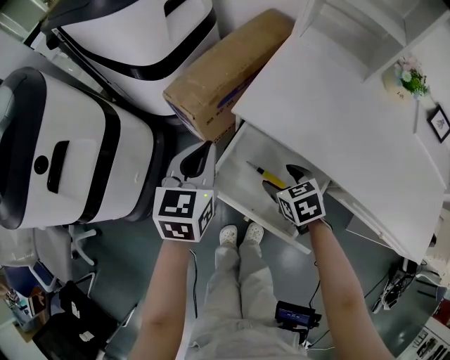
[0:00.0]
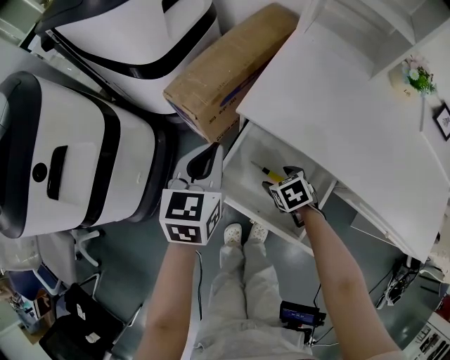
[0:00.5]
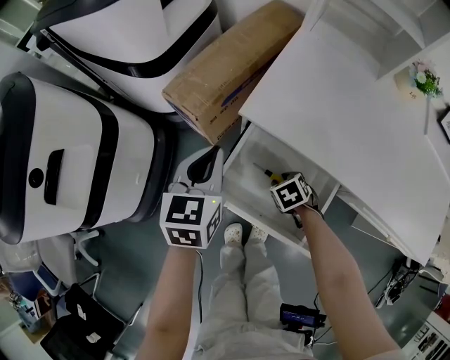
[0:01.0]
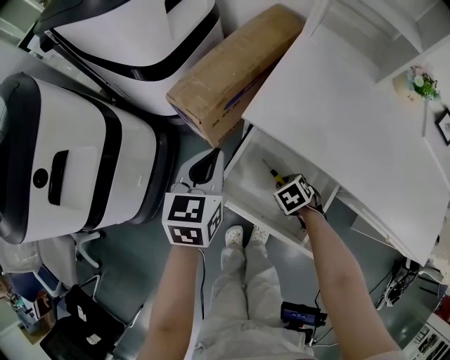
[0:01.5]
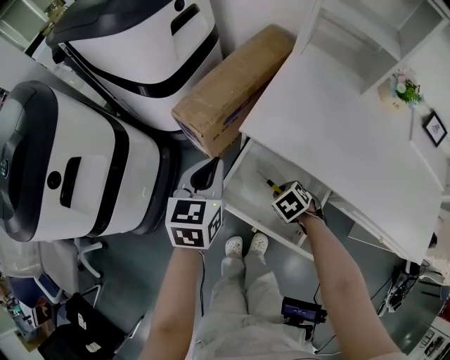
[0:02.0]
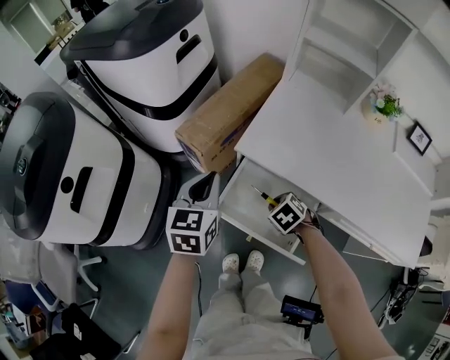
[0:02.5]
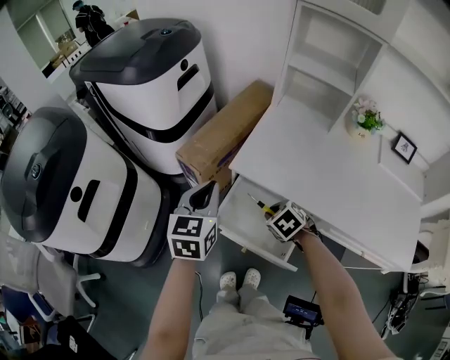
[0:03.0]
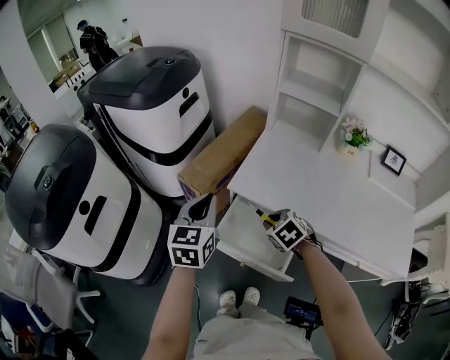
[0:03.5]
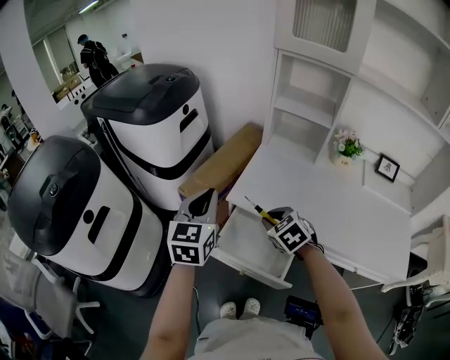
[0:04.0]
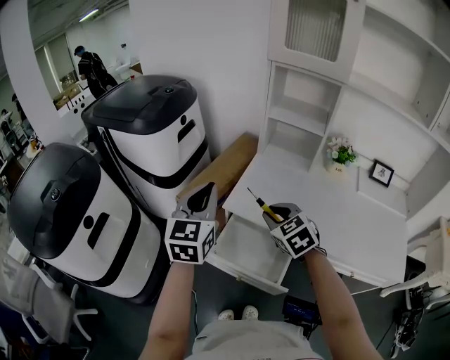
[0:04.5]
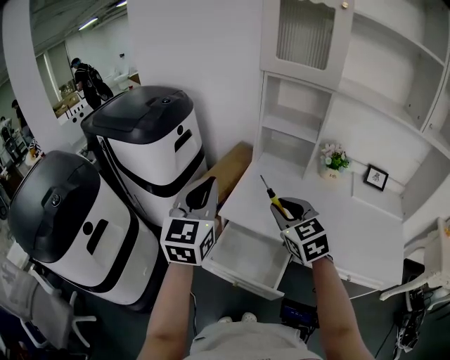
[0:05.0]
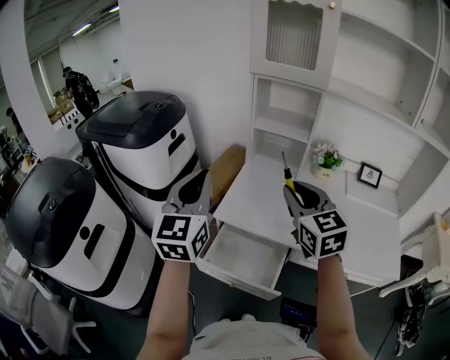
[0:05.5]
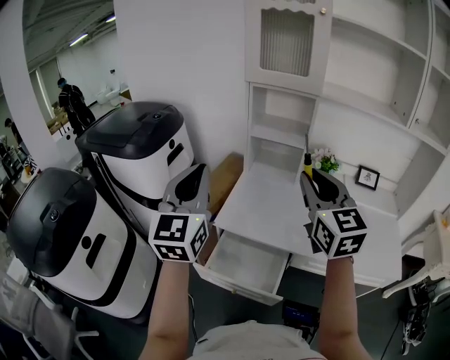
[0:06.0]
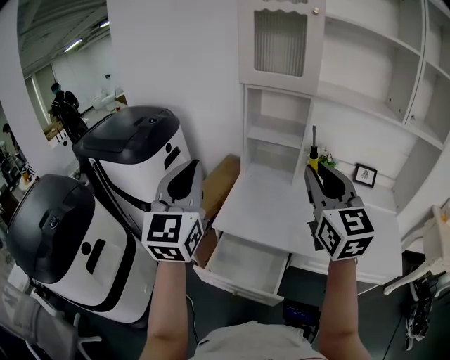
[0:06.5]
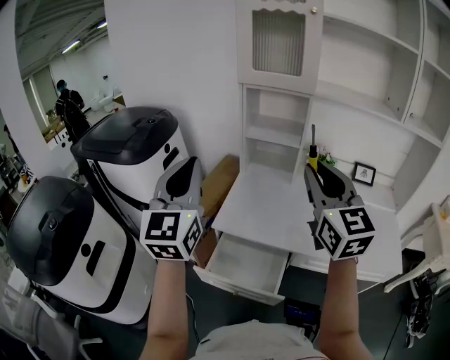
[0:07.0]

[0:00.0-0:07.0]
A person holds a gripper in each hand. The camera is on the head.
0:00.0 to 0:02.0: The right gripper goes some 5 cm downward, swivels about 20 degrees, and closes.
0:02.0 to 0:03.5: Both grippers travel together upward, about 15 cm.
0:03.5 to 0:05.0: Both grippers travel together upward, some 20 cm. The right gripper tilts its fingers roughly 40 degrees upward. Meanwhile the left gripper turns by roughly 20 degrees.
0:05.0 to 0:07.0: The left gripper moves upward, some 10 cm. The right gripper moves upward and to the right, approximately 20 cm, and changes its angle by about 30 degrees.

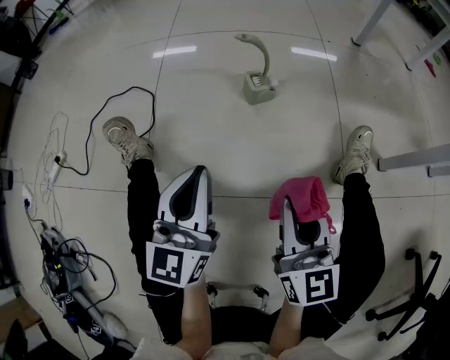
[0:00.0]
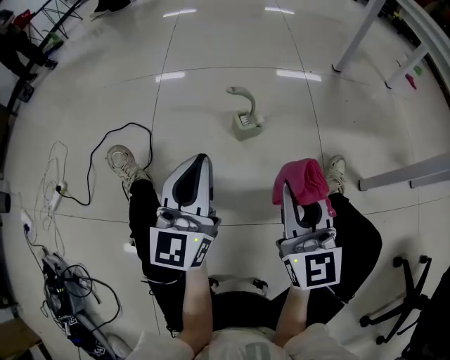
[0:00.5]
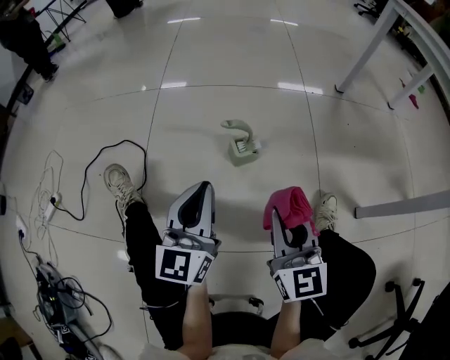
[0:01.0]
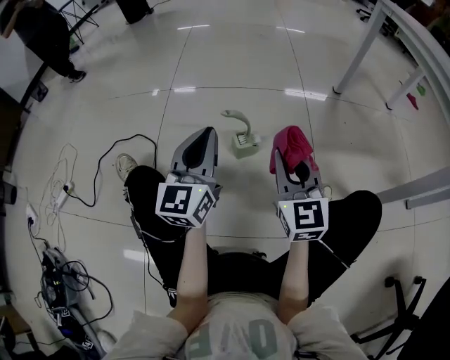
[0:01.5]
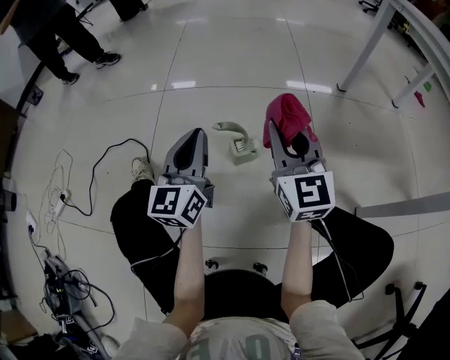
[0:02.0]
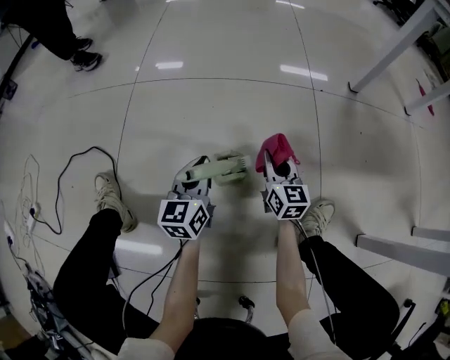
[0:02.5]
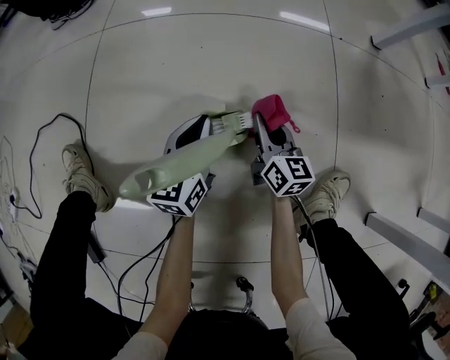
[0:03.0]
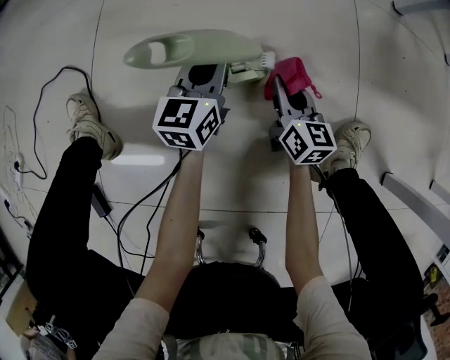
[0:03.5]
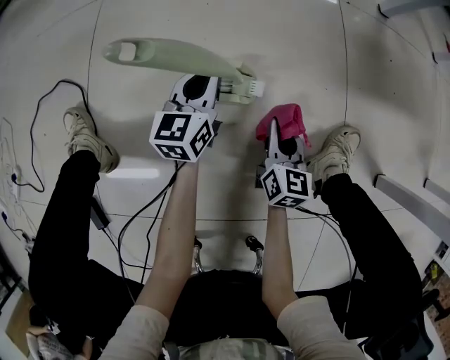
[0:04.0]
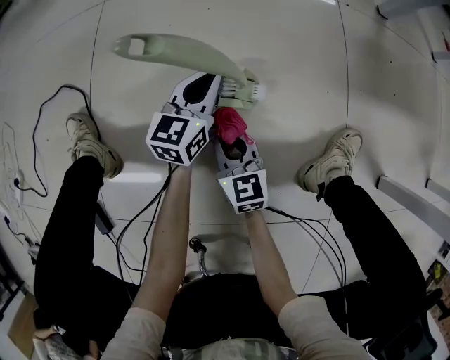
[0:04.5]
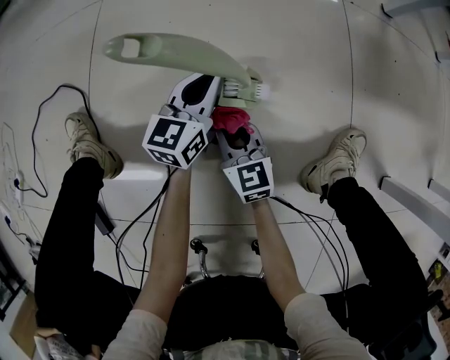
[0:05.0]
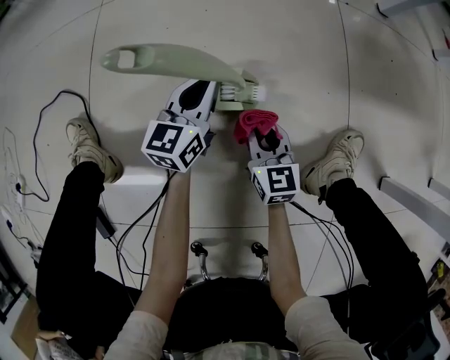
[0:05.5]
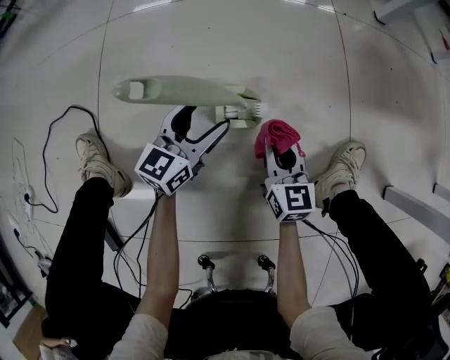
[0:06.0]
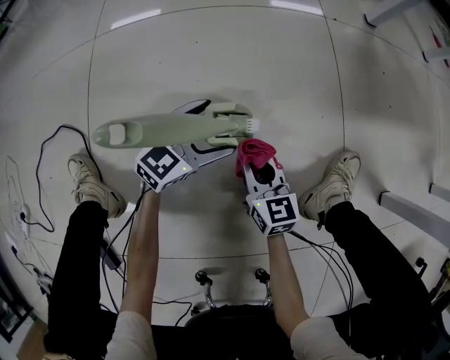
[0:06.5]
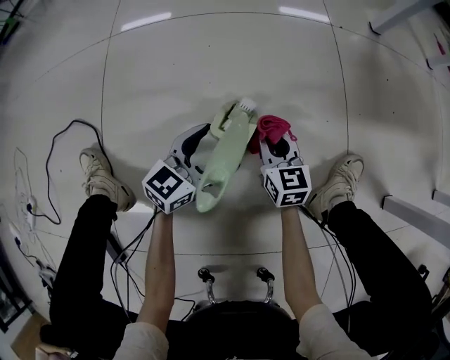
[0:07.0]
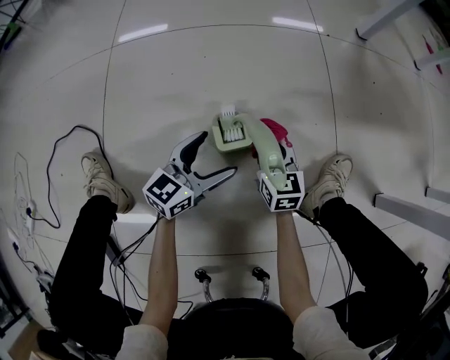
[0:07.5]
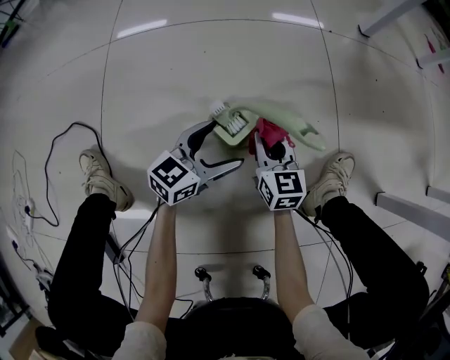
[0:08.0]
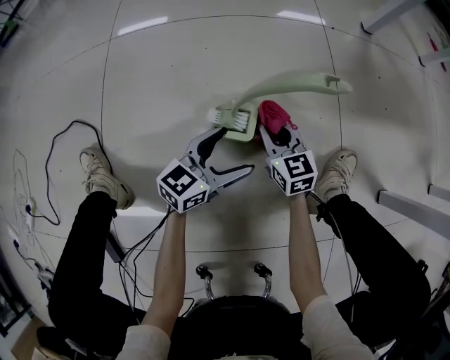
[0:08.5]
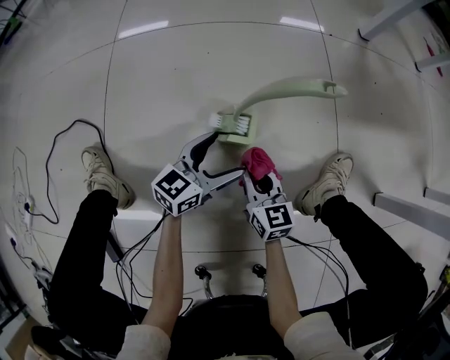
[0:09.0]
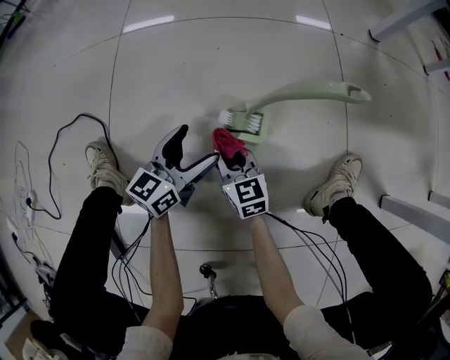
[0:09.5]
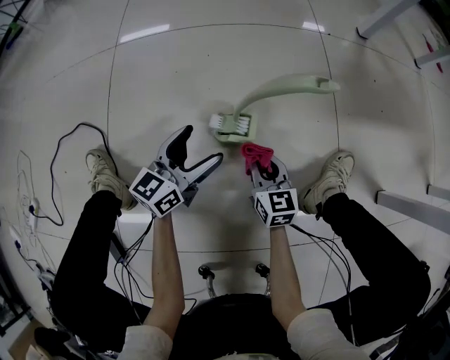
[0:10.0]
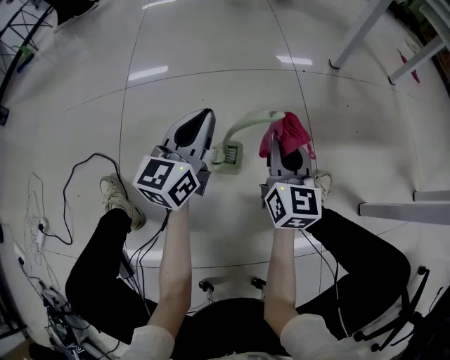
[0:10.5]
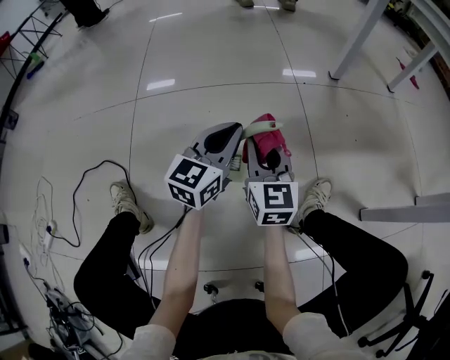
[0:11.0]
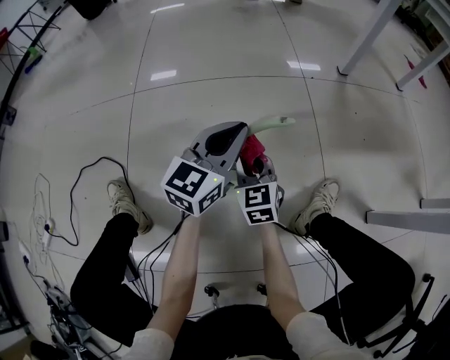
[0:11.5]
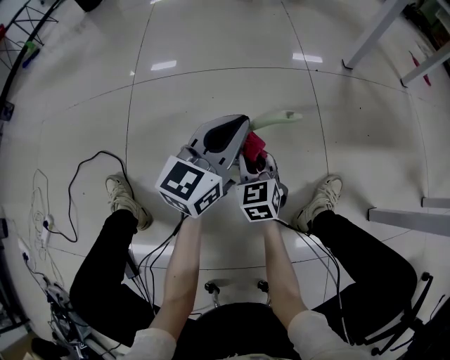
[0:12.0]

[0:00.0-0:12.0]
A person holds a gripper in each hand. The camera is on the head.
0:00.0 to 0:02.0: The two grippers go approximately 25 cm forward.
0:02.0 to 0:04.0: The grippers both shift downward by roughly 35 cm. The left gripper swivels approximately 20 degrees; the right gripper turns by approximately 40 degrees.
0:04.0 to 0:06.0: The left gripper opens its fingers, while the right gripper travels to the left and back again, roughly 15 cm each way.
0:06.0 to 0:08.0: The right gripper ends up approximately 5 cm from where it was; the left gripper travels to the right by roughly 5 cm.
0:08.0 to 0:10.0: The right gripper travels backward by roughly 5 cm, and moves some 10 cm to the left and comes back, while the left gripper is displaced to the left by about 5 cm.
0:10.0 to 0:12.0: The left gripper is displaced upward and forward by roughly 20 cm, and closes. Meanwhile the right gripper shifts roughly 15 cm upward and forward, and swivels approximately 20 degrees.

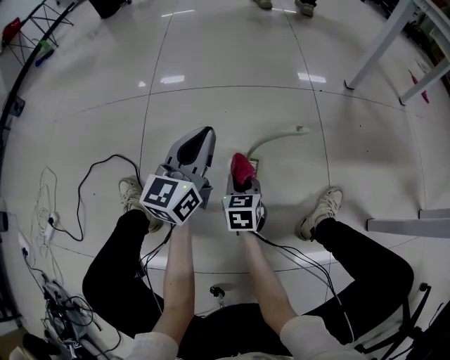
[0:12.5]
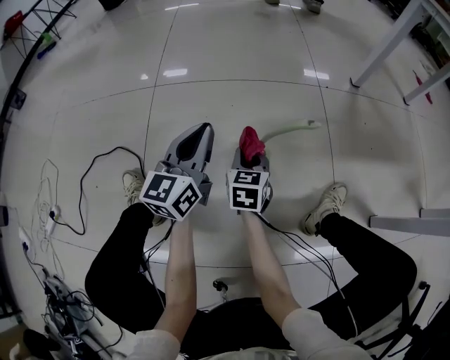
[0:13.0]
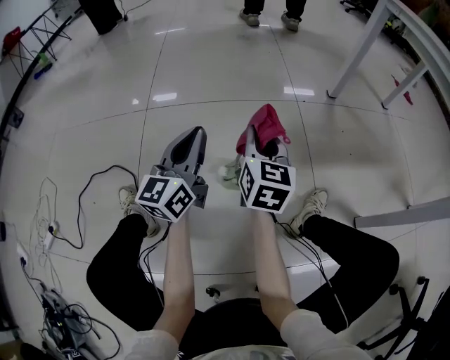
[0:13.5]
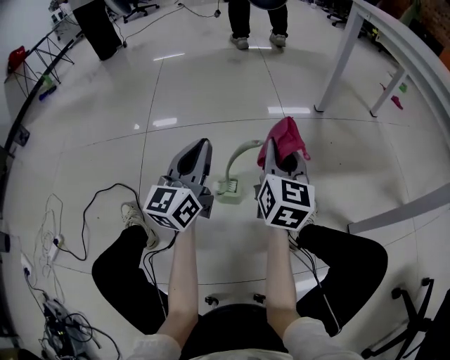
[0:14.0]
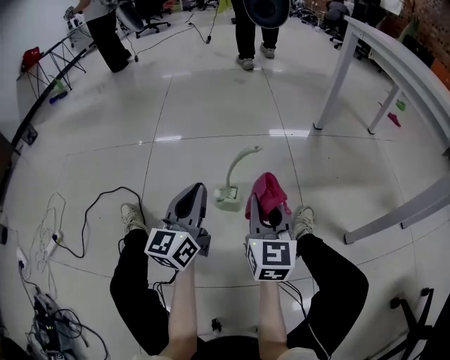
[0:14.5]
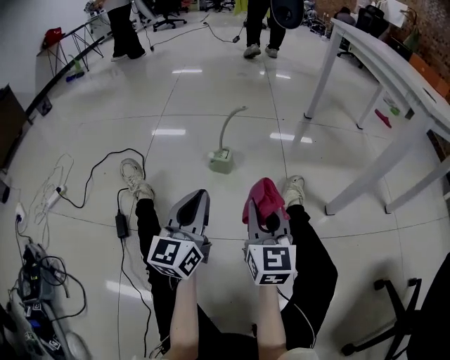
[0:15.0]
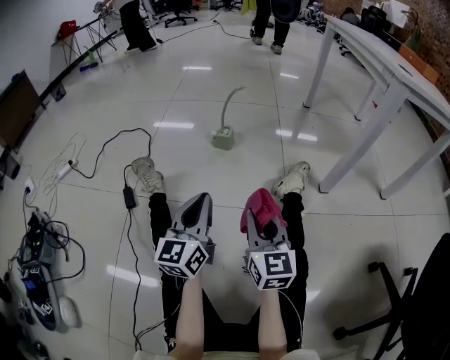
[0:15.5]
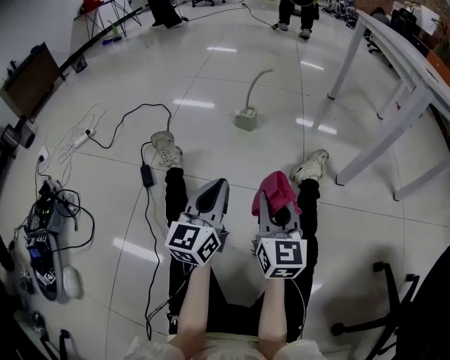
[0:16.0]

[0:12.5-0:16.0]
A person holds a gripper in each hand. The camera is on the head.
0:12.5 to 0:14.5: The left gripper is displaced backward and upward by some 15 cm. The right gripper is displaced upward and to the right by roughly 30 cm, and tilts its fingers roughly 30 degrees upward.
0:14.5 to 0:16.0: The pair of grippers is taken backward, some 40 cm.

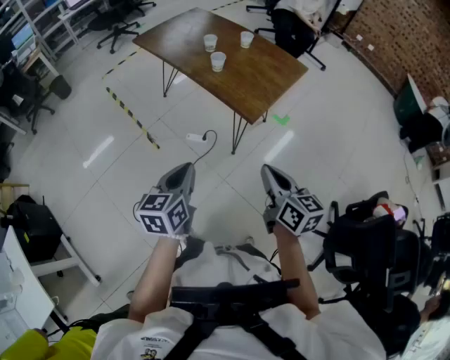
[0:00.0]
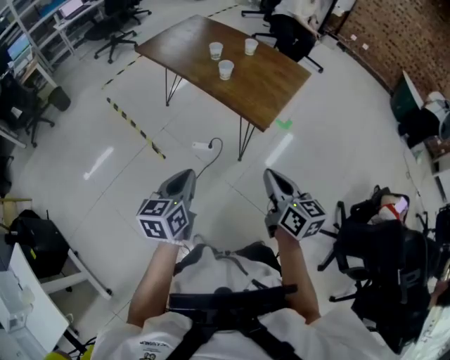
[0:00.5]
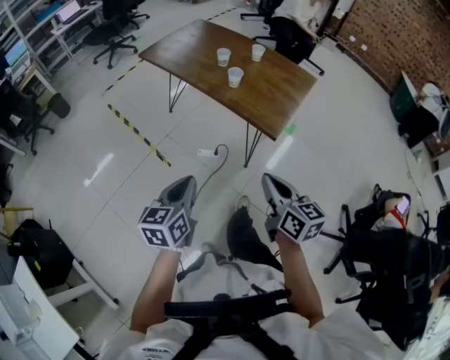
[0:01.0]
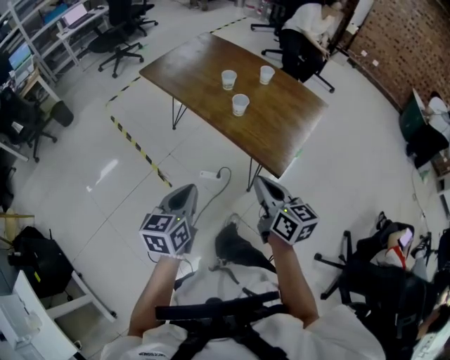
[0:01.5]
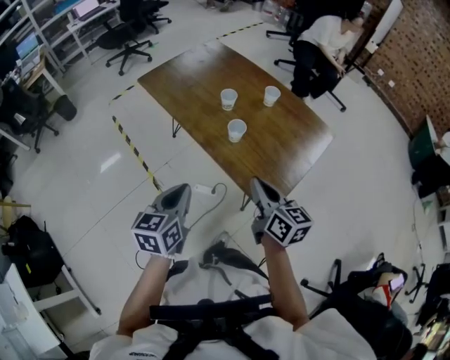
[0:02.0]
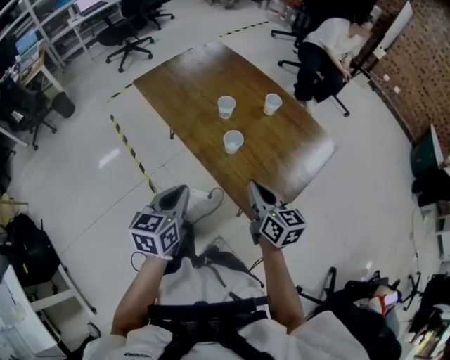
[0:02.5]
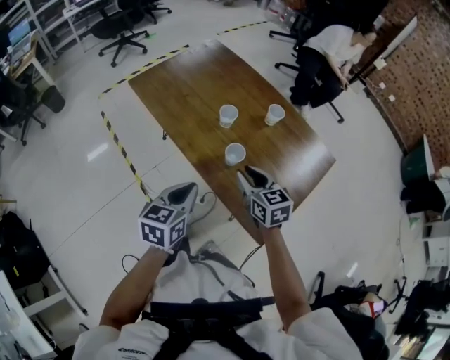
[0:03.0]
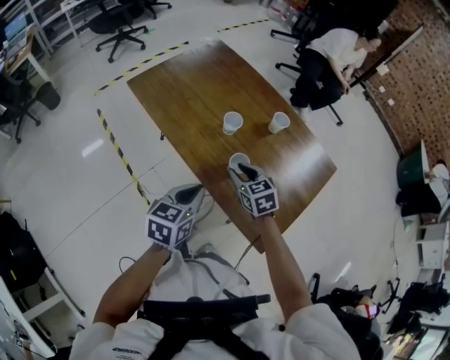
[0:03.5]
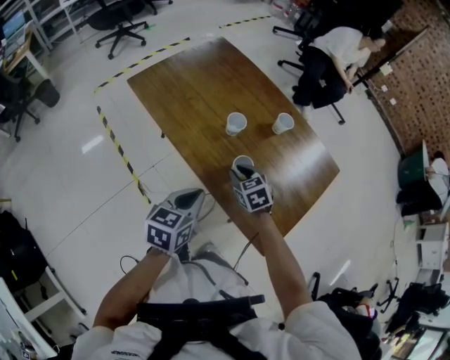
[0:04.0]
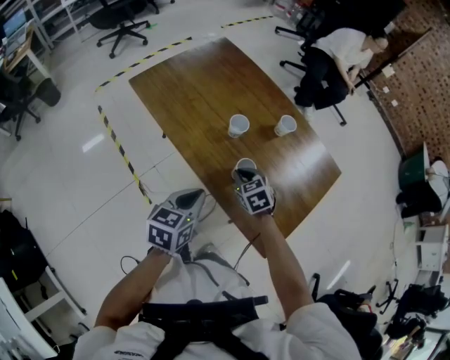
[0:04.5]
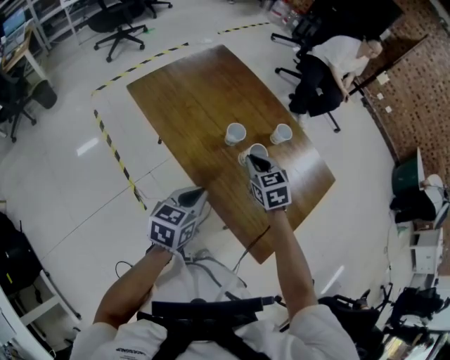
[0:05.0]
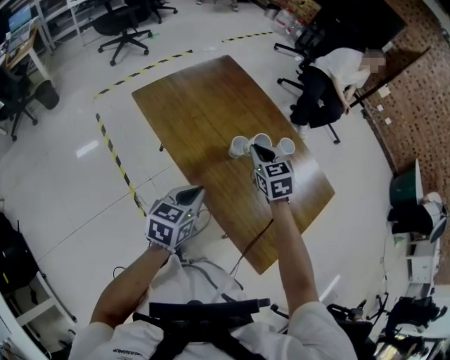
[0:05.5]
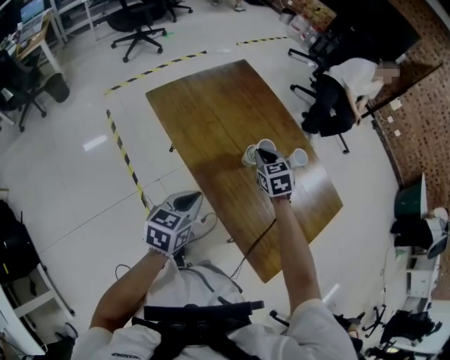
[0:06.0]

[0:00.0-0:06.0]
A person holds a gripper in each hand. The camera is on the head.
0:00.0 to 0:02.0: The grippers both shift forward by roughly 30 cm.
0:02.0 to 0:04.0: The right gripper moves forward and downward, about 30 cm, tips its fingers downward by approximately 40 degrees, and opens up. The left gripper heads forward, covering some 15 cm.
0:04.0 to 0:06.0: The left gripper shifts some 10 cm to the left and forward, while the right gripper moves forward and upward, some 20 cm.
